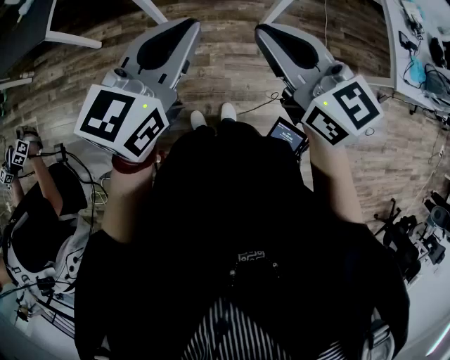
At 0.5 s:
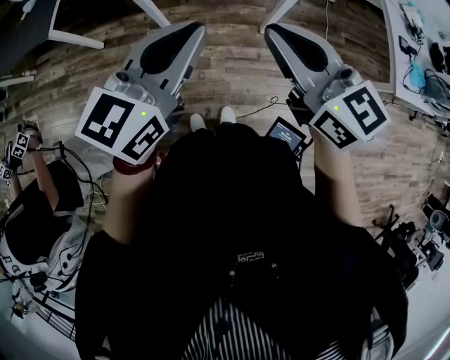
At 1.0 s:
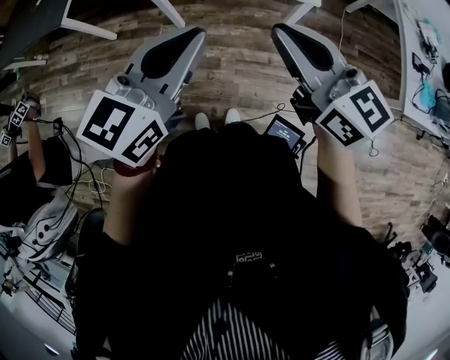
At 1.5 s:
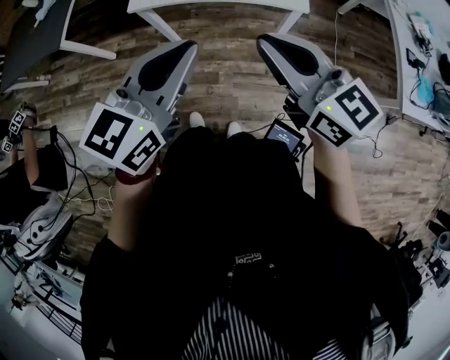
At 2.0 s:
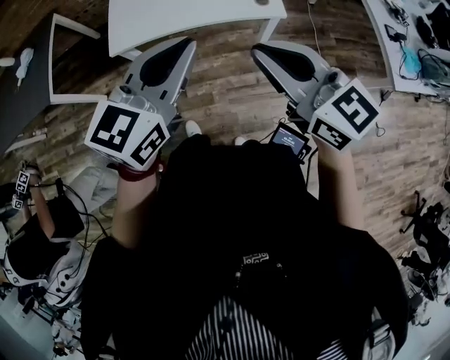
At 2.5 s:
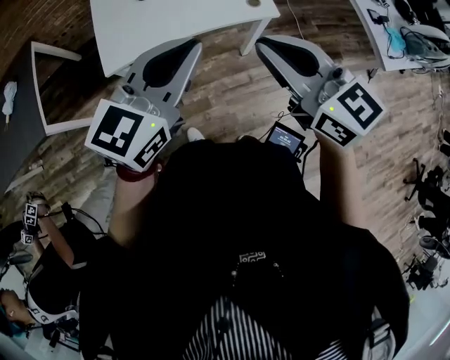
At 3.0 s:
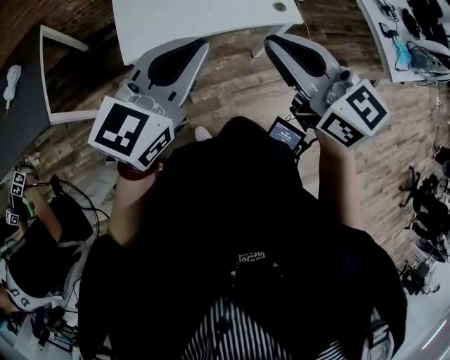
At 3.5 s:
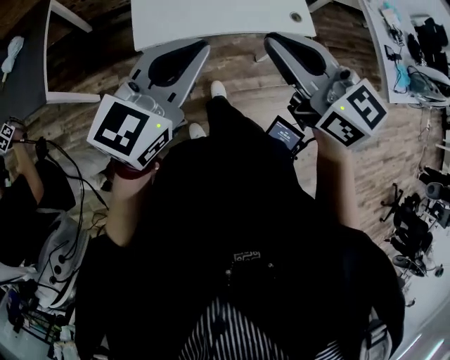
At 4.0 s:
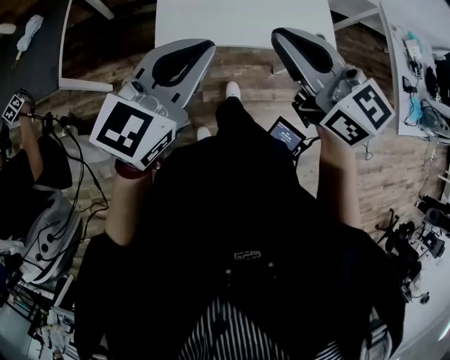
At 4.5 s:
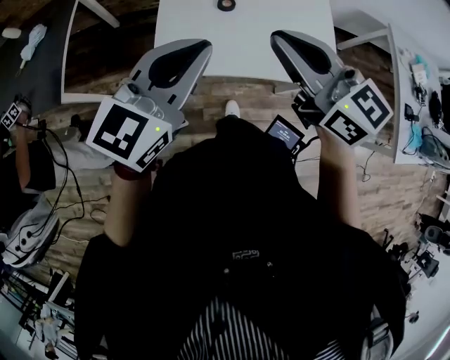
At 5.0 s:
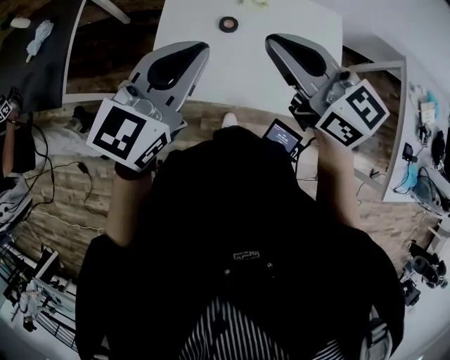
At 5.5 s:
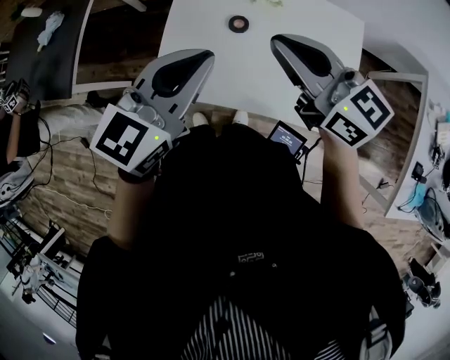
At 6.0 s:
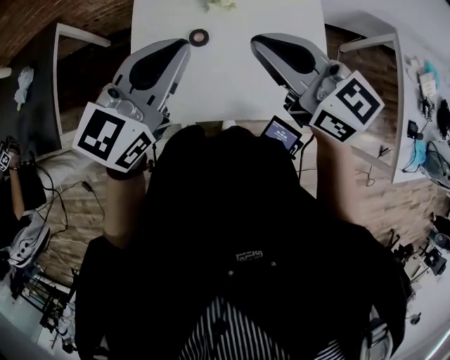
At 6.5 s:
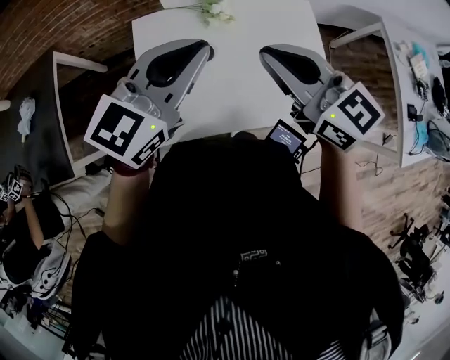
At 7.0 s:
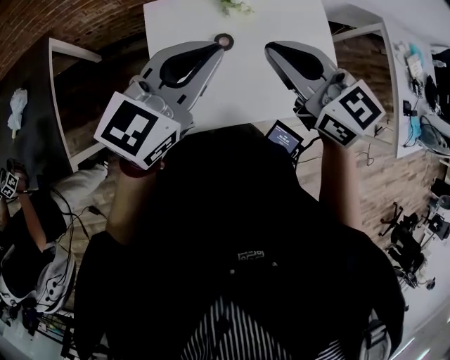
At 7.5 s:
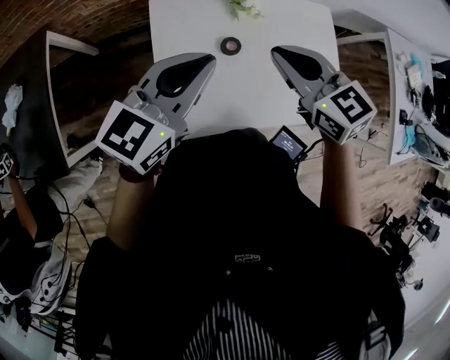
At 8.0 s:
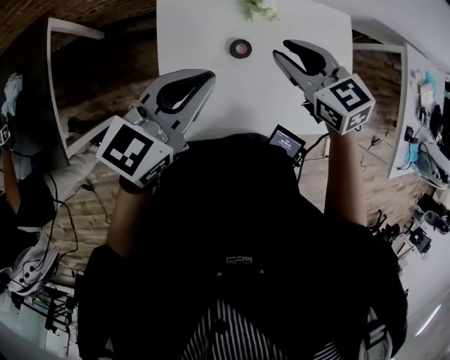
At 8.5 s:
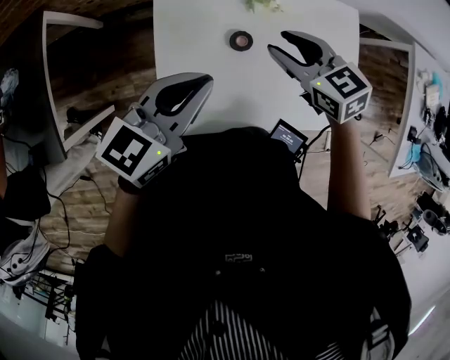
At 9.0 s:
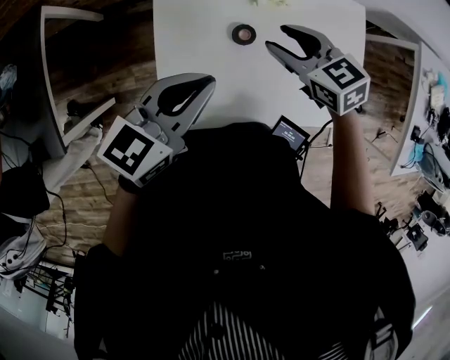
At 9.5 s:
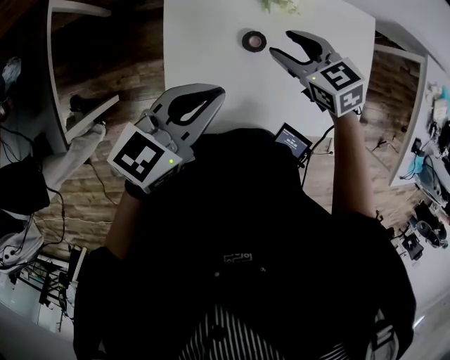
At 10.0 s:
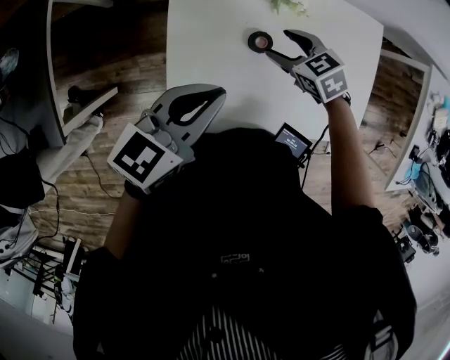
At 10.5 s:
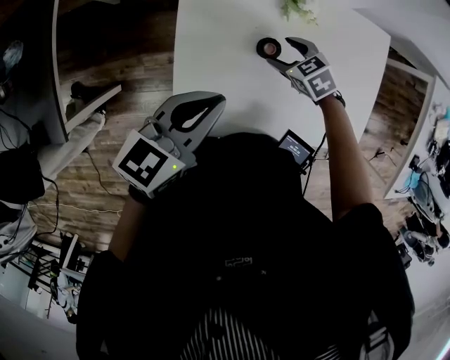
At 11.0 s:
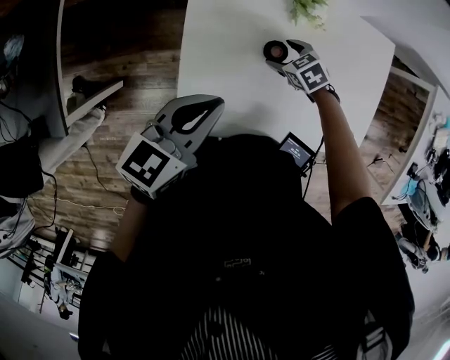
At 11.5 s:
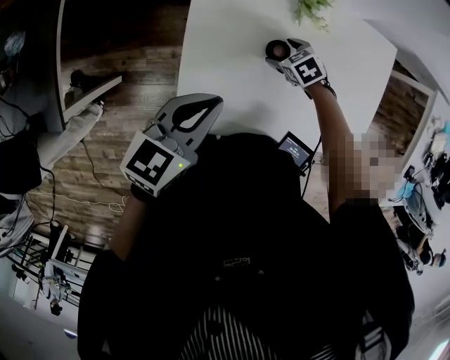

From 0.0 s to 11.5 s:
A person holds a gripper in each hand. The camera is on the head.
From 0.0 s to 2.0 s: The left gripper goes about 10 cm forward and to the right, while the right gripper goes some 10 cm forward.
From 2.0 s to 4.0 s: Both grippers travel together to the left and forward, some 25 cm.
From 4.0 s to 6.0 s: Both grippers travel together forward and to the right, approximately 30 cm.
From 6.0 s to 7.5 s: The right gripper shifts some 10 cm to the left and downward, and turns by approximately 30 degrees. The left gripper moves to the left, roughly 10 cm.
From 7.5 s to 9.5 s: The left gripper is displaced downward by approximately 10 cm; the right gripper shifts about 15 cm downward and forward, rotates about 20 degrees, and opens its fingers.
From 9.5 s to 11.5 s: The right gripper travels downward by about 20 cm, changes its angle by some 30 degrees, and opens. The left gripper changes place by roughly 5 cm.

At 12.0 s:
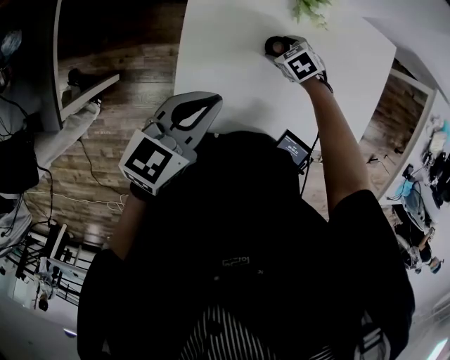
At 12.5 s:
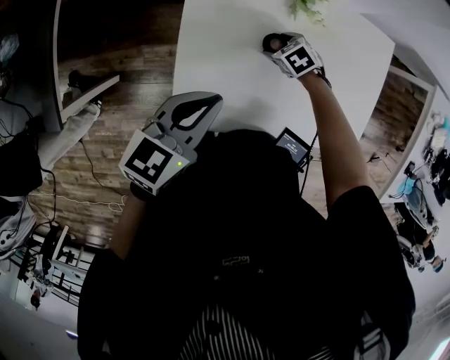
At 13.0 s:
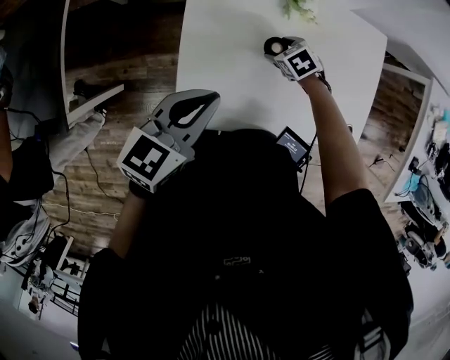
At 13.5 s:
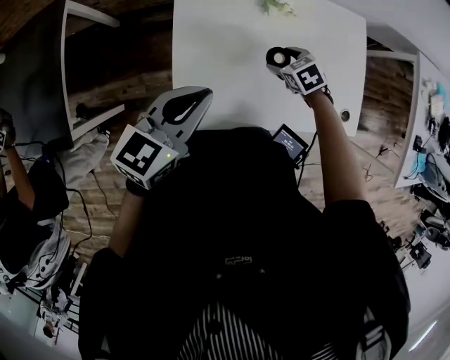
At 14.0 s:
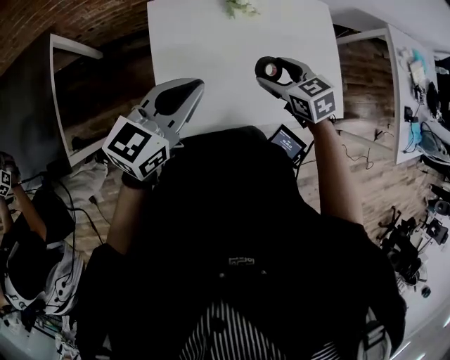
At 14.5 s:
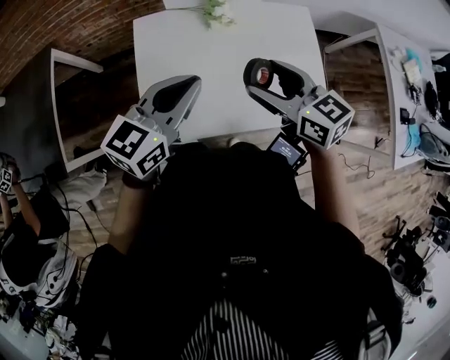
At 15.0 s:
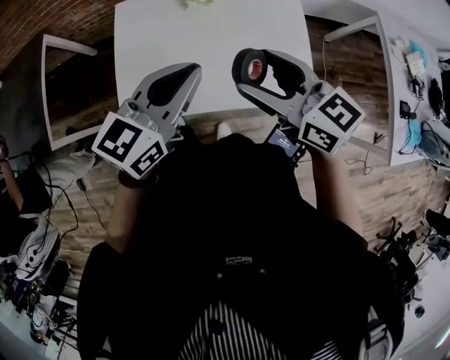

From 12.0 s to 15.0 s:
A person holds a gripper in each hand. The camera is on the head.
From 12.0 s to 13.5 s: The left gripper moves roughly 5 cm, while the right gripper heads upward and backward, covering approximately 10 cm.
From 13.5 s to 15.0 s: The right gripper goes about 35 cm upward and backward, and points its fingers some 50 degrees further upward, while the left gripper travels to the right by some 20 cm.

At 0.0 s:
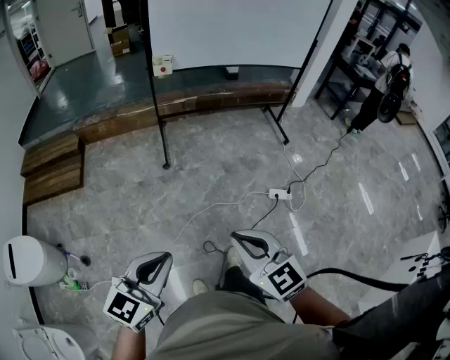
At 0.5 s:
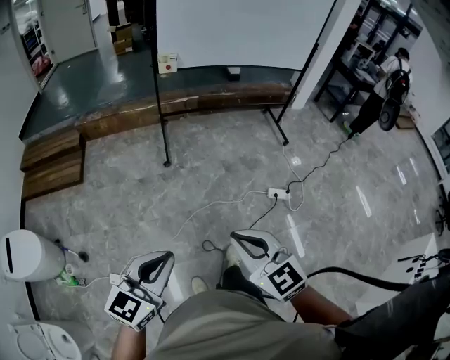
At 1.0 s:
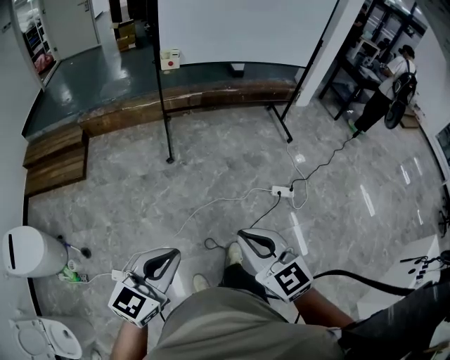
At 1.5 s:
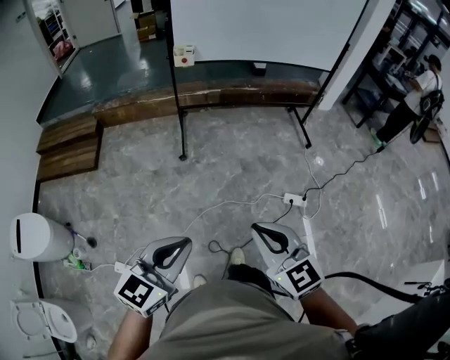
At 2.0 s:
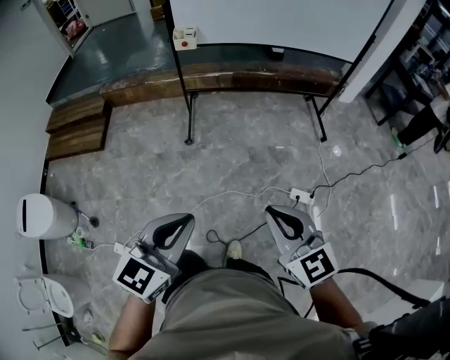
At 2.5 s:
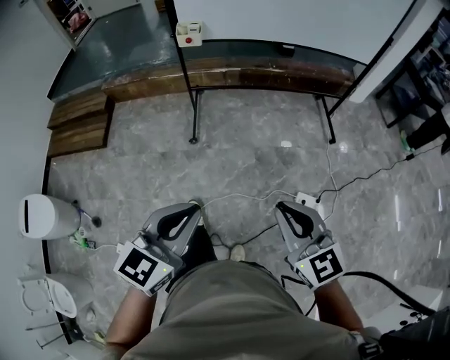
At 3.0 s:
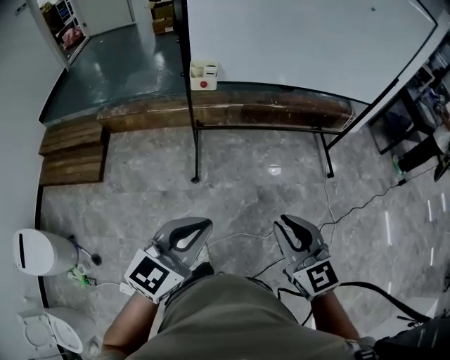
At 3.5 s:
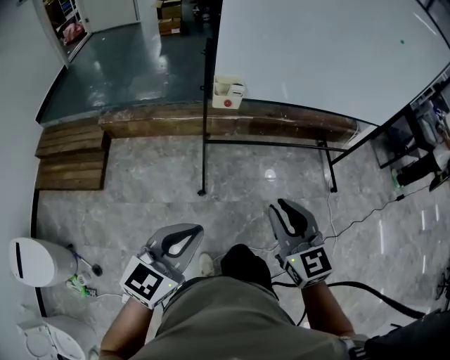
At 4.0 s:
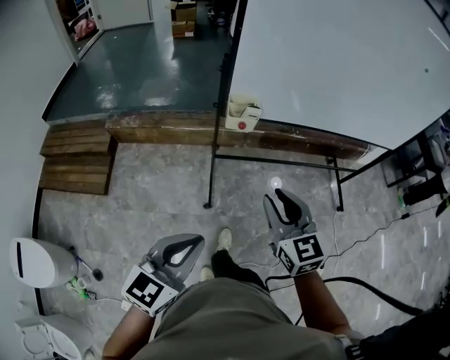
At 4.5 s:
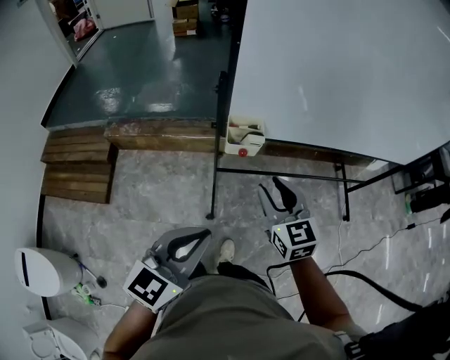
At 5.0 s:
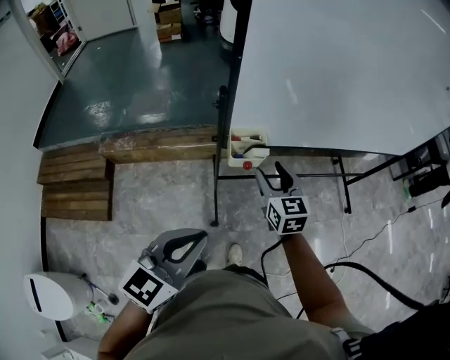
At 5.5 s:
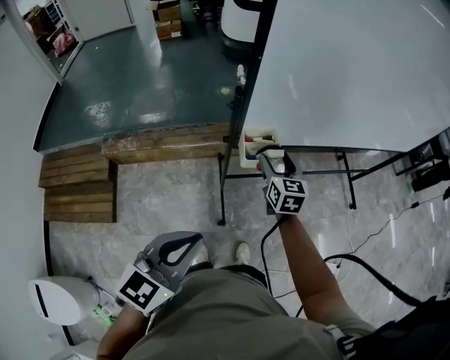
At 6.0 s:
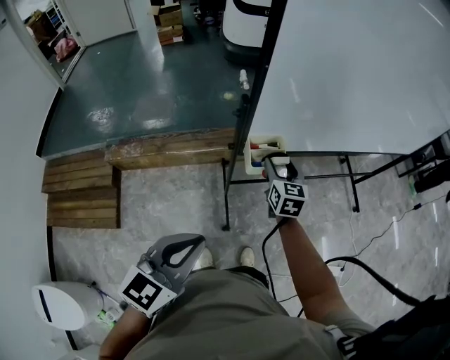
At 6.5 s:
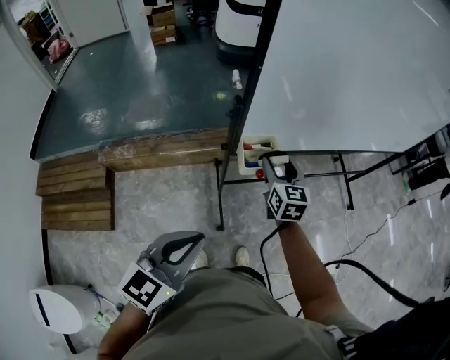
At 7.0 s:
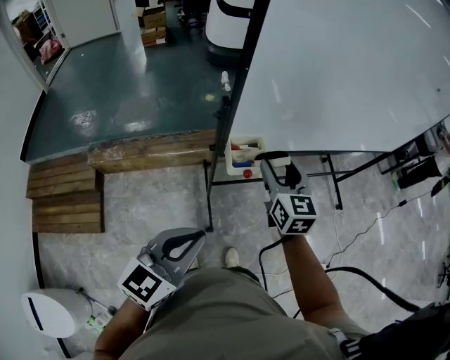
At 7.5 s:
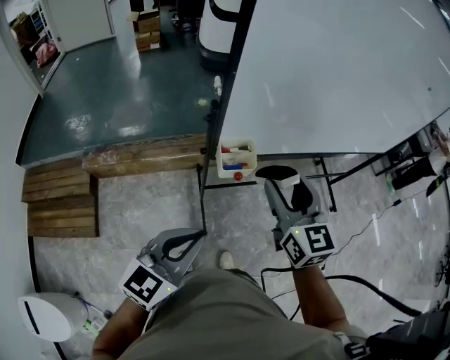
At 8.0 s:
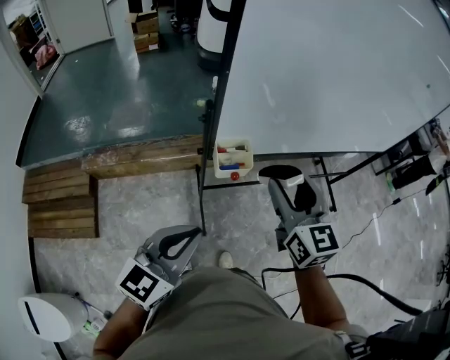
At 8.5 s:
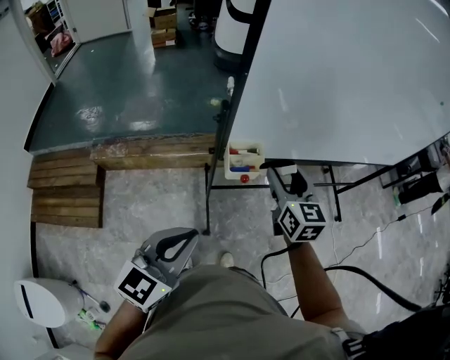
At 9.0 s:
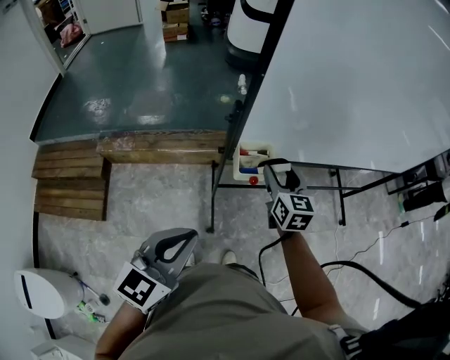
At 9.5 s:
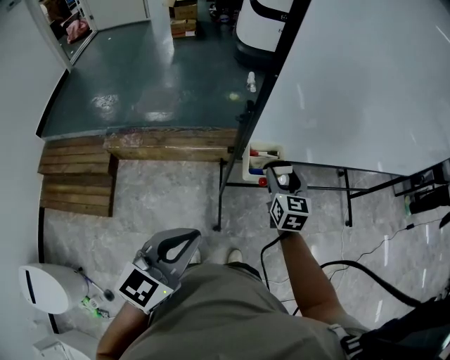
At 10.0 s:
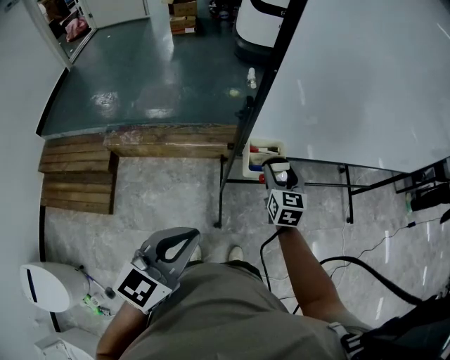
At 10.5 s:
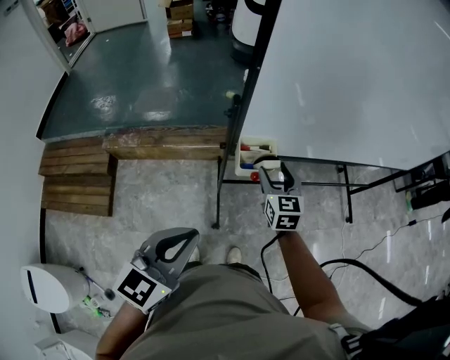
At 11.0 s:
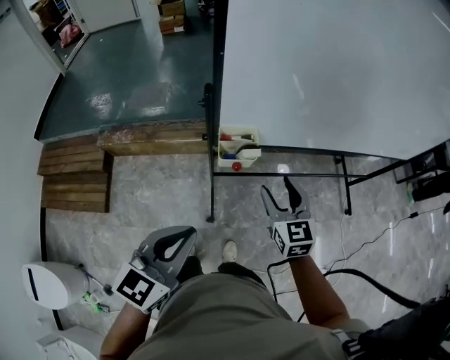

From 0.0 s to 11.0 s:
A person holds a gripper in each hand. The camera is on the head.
From 0.0 s to 2.0 s: Both grippers move forward and to the right, some 25 cm.
From 2.0 s to 3.5 s: The pair of grippers is taken forward and to the left, some 40 cm.
From 3.5 s to 5.5 s: The right gripper moves forward, approximately 40 cm, turns by about 30 degrees, and opens up. The left gripper travels forward and to the left by some 30 cm.
From 5.5 s to 7.5 s: The right gripper is displaced upward and backward by about 20 cm.
From 7.5 s to 9.0 s: The right gripper shifts roughly 15 cm downward and forward.
From 9.0 s to 11.0 s: The left gripper goes approximately 5 cm to the right. The right gripper heads backward and to the right, covering roughly 10 cm.

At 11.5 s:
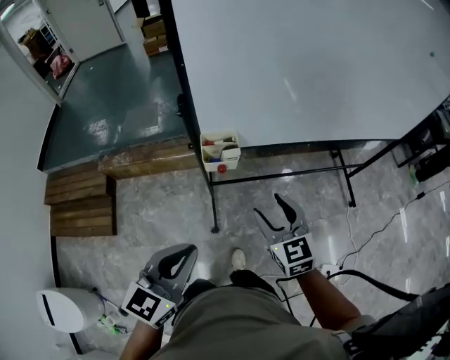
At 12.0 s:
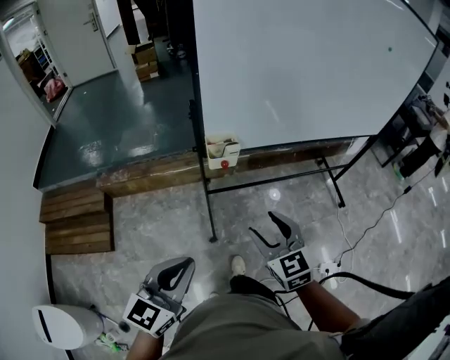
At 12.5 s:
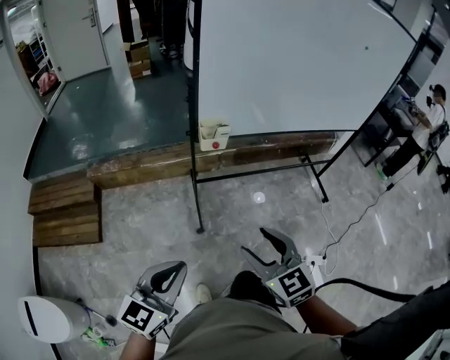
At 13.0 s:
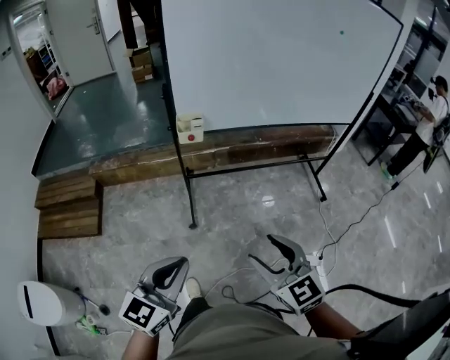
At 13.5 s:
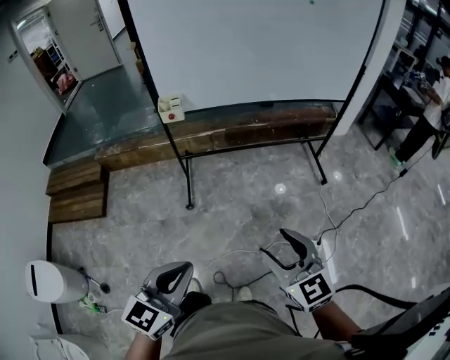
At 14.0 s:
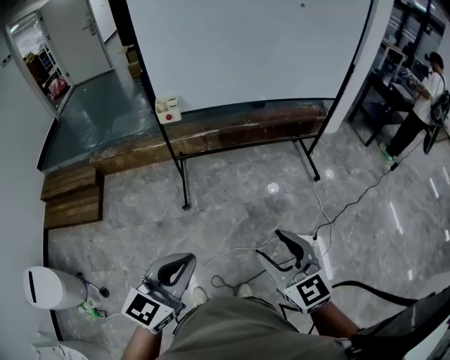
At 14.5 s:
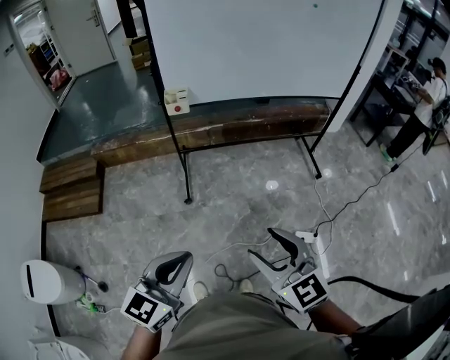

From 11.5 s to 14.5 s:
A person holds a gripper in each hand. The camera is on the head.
From 11.5 s to 13.0 s: Both grippers travel together backward, some 35 cm.
From 13.0 s to 14.5 s: Both grippers travel together backward and to the right, approximately 15 cm.
